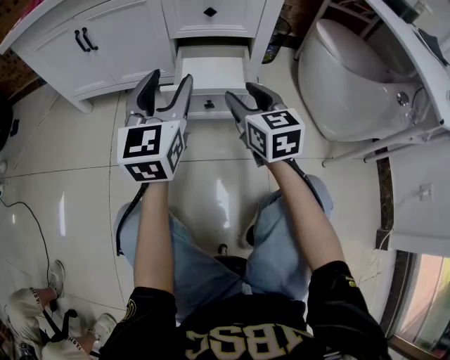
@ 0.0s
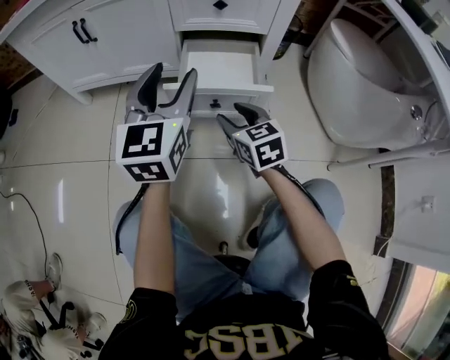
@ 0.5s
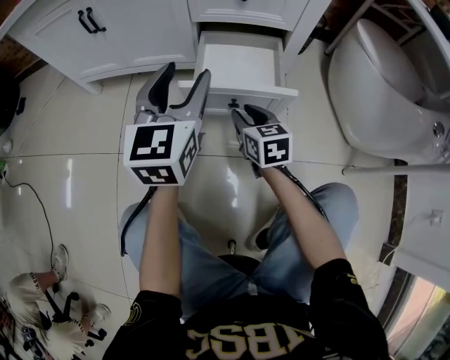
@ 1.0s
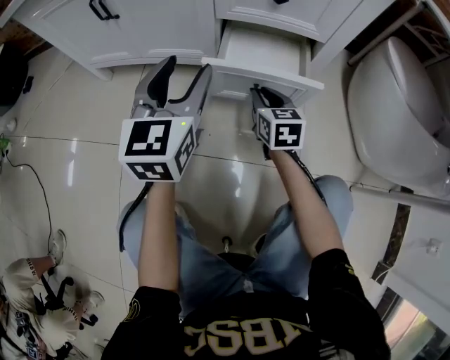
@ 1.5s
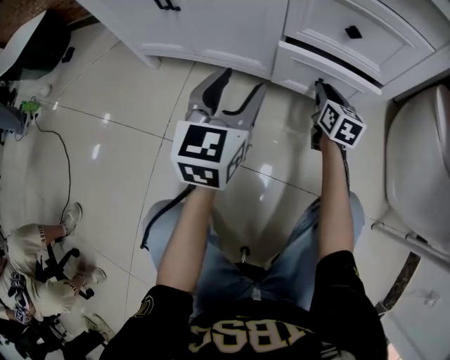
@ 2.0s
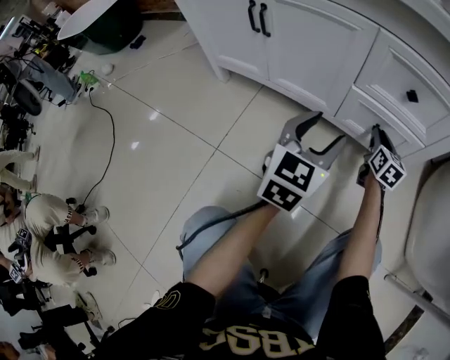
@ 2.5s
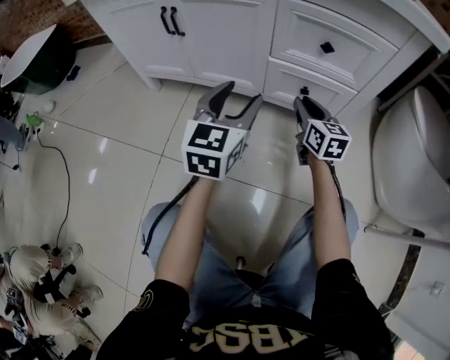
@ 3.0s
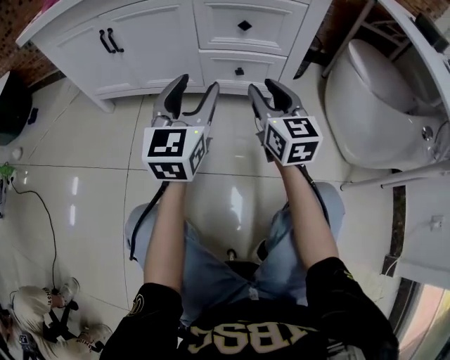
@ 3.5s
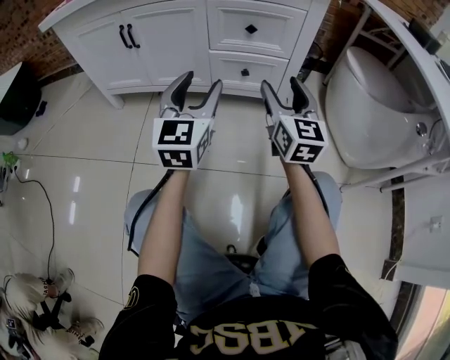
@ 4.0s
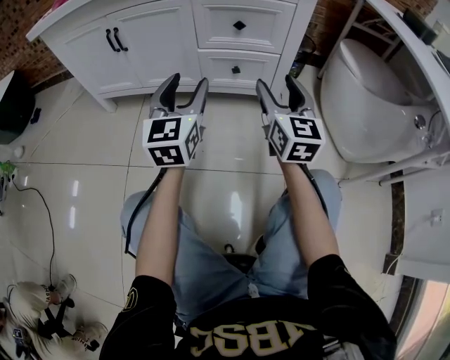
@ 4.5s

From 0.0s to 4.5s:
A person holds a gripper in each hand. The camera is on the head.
From 0.0s to 2.0s: The left gripper goes approximately 20 cm forward, downward and to the left. Meanwhile the right gripper travels forward and downward by approximately 30 cm, and closes up.
From 2.0s to 4.5s: The right gripper is displaced backward and upward by roughly 30 cm, changes its angle by approximately 30 degrees, and opens its fingers. The left gripper is displaced backward, upward and to the right by some 10 cm.

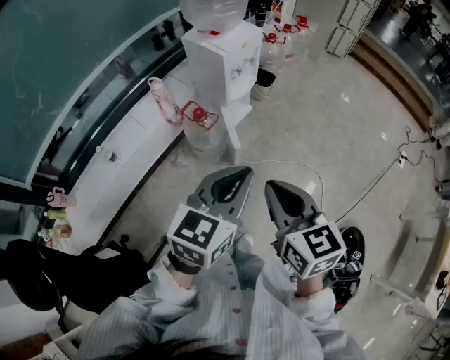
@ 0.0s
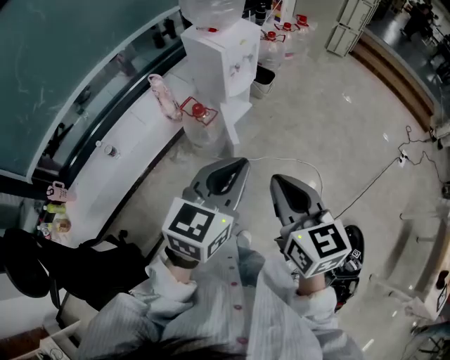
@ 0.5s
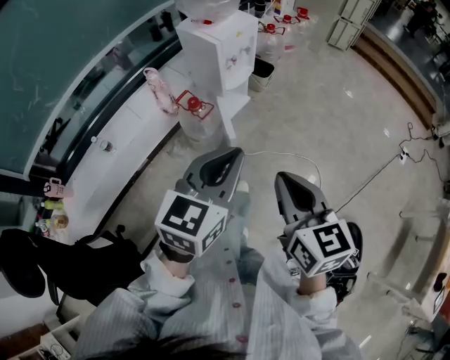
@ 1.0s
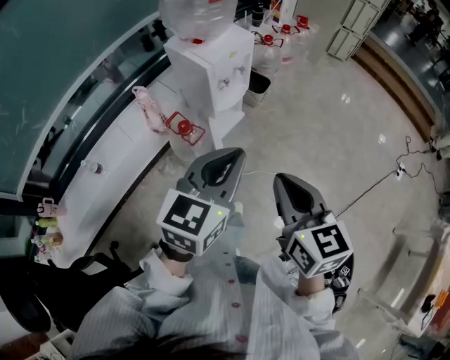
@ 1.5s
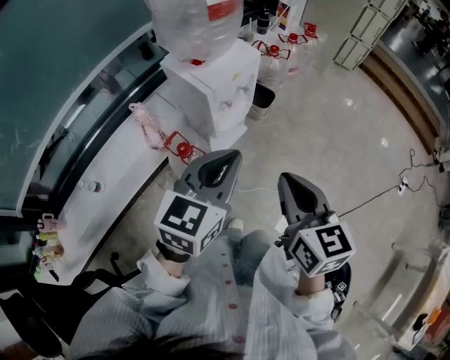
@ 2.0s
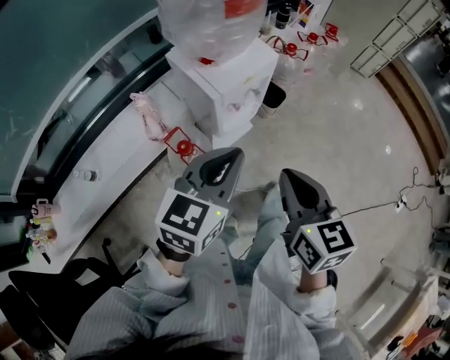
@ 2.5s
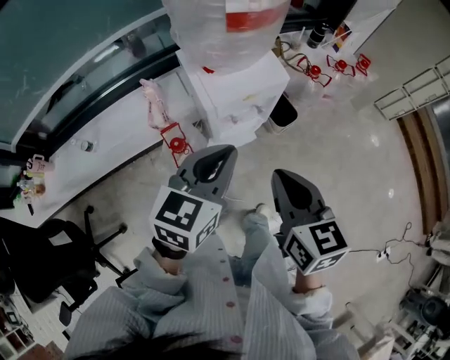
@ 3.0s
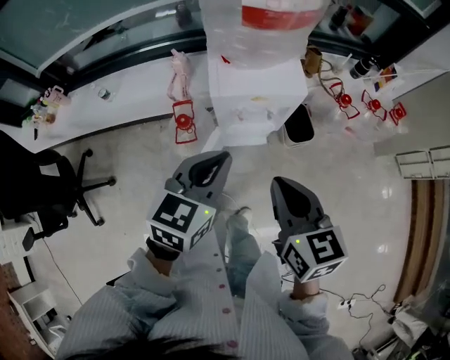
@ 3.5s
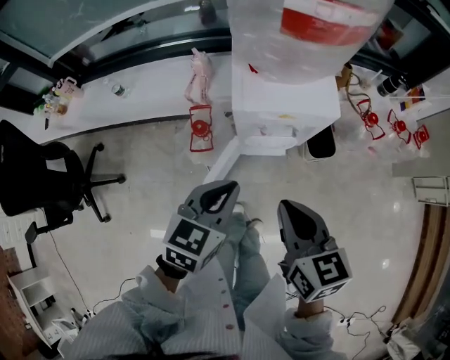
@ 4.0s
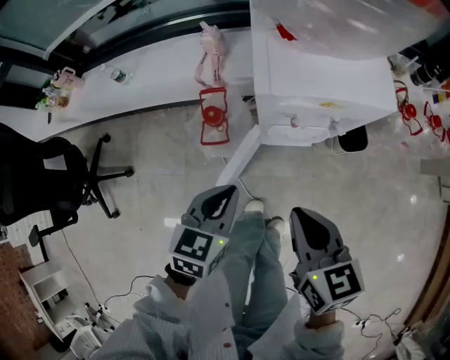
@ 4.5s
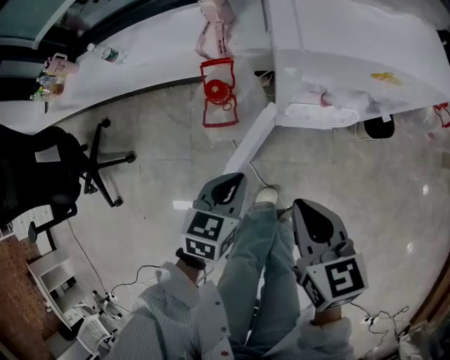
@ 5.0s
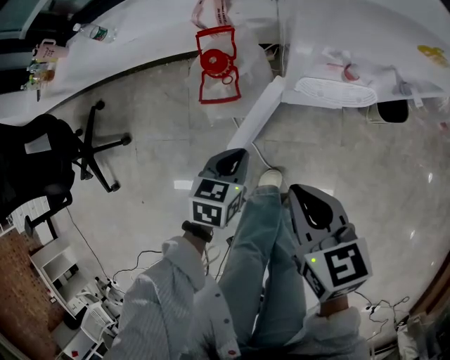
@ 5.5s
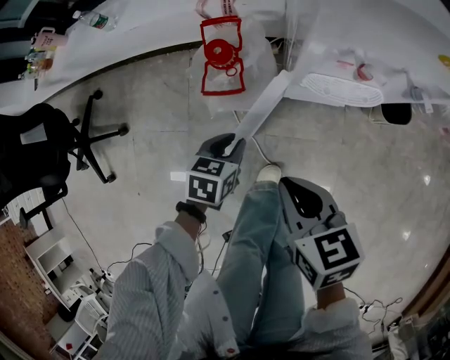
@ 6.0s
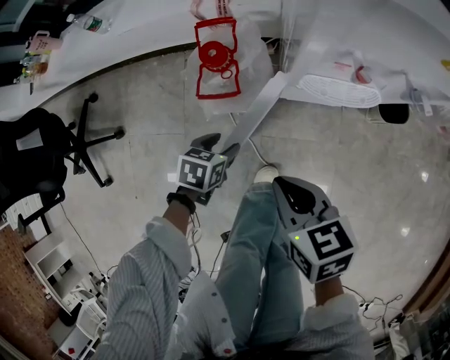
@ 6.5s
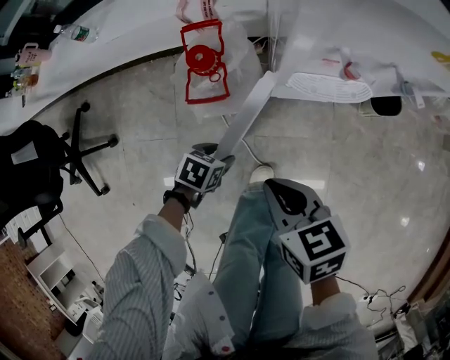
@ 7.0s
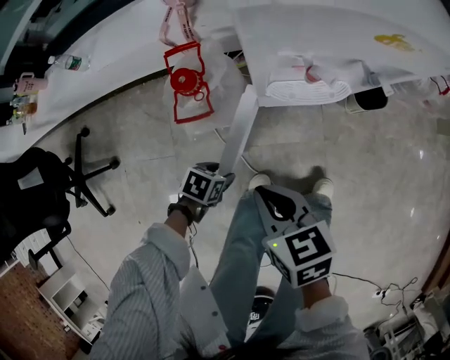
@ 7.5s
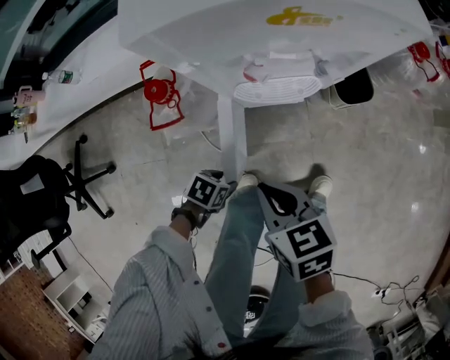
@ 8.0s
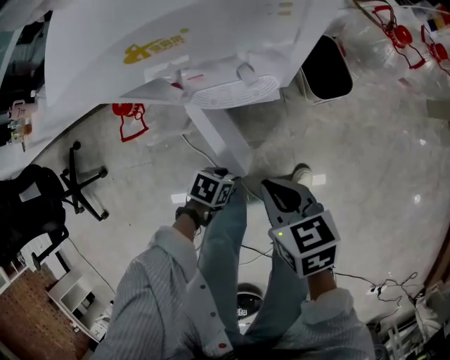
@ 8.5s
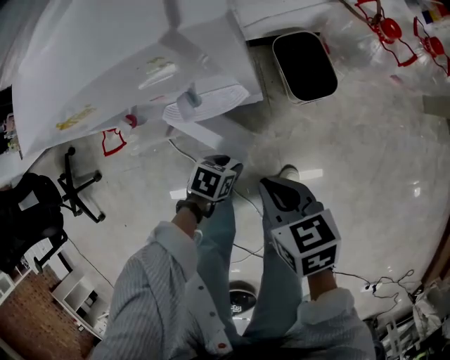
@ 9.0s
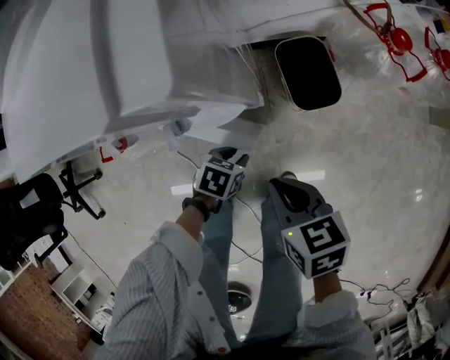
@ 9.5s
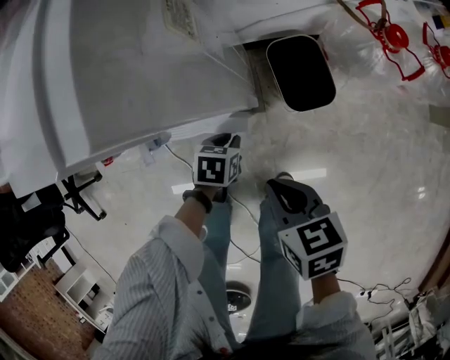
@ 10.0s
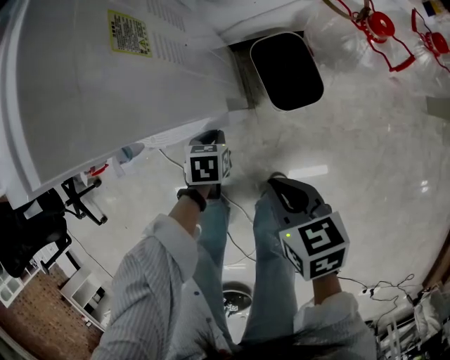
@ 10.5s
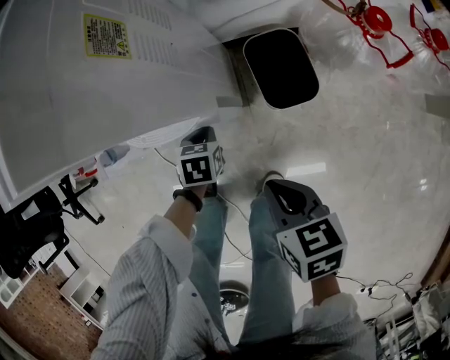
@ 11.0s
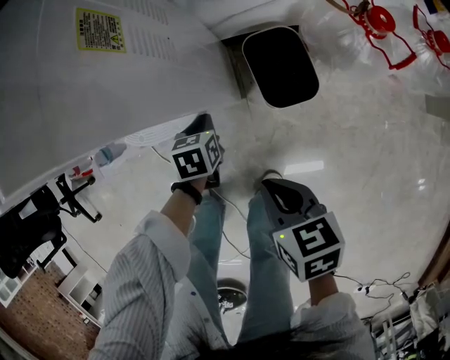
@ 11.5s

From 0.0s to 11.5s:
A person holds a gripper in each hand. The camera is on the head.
From 0.0s to 2.0s: Both grippers move forward, about 30 cm.
From 2.0s to 4.0s: The right gripper changes place by about 25 cm, and swivels roughly 50 degrees. The left gripper ends up some 20 cm from where it was, and turns by about 50 degrees.
From 4.0s to 6.0s: Both grippers travel together downward, approximately 40 cm. The right gripper changes its angle by some 20 degrees; the left gripper swivels about 30 degrees.
From 6.0s to 7.5s: The left gripper shifts about 5 cm downward, changes its angle by roughly 30 degrees, and opens its fingers.
From 7.5s to 9.5s: The left gripper ends up approximately 35 cm from where it was, and closes; the right gripper shifts by roughly 35 cm.
From 9.5s to 11.5s: The left gripper ends up roughly 10 cm from where it was, rotates about 30 degrees, and closes. The right gripper ends up some 10 cm from where it was.

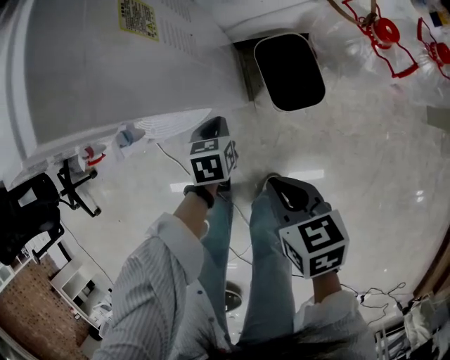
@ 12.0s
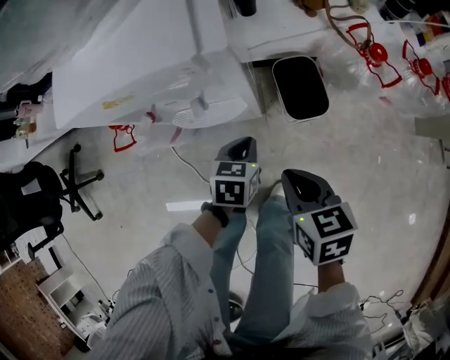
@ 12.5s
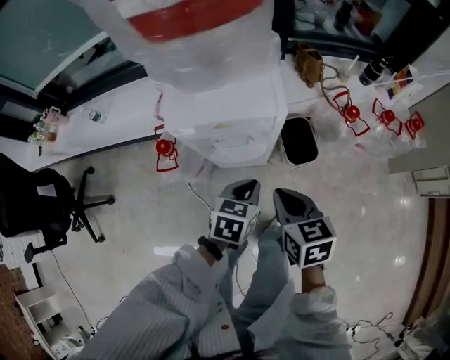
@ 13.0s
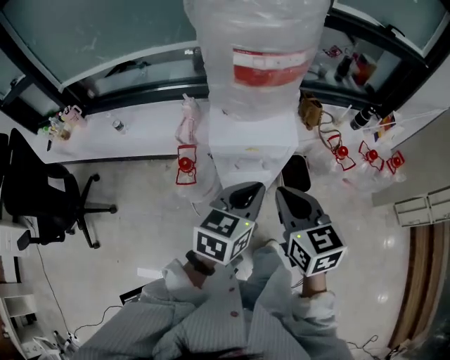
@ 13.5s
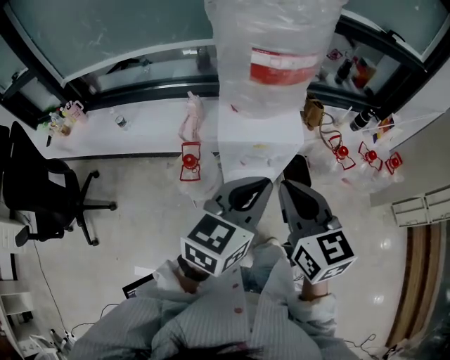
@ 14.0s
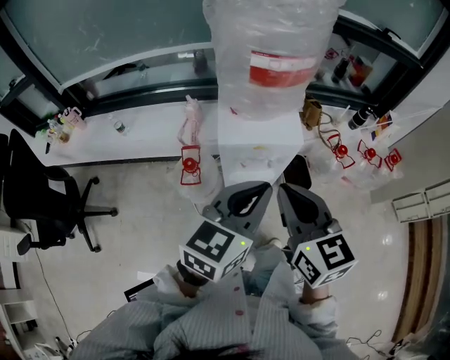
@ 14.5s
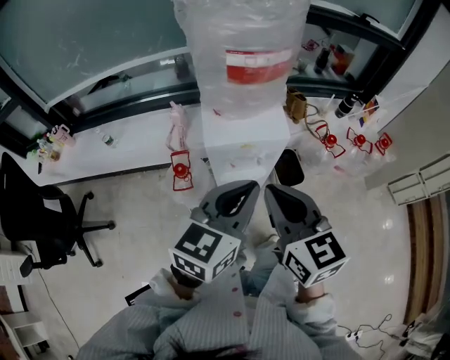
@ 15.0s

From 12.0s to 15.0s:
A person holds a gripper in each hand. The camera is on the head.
From 12.0s to 13.5s: The right gripper heads upward and to the left, covering about 50 cm, and turns by approximately 40 degrees. The left gripper heads upward, covering about 60 cm, and tips its fingers upward by about 40 degrees.
From 13.5s to 15.0s: The two grippers go approximately 5 cm upward.

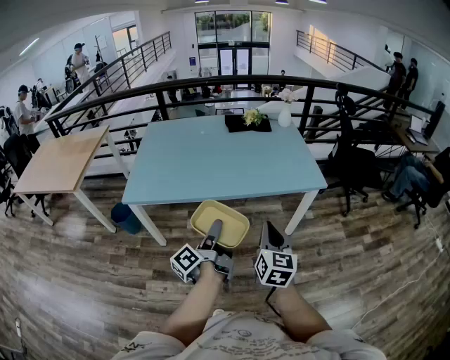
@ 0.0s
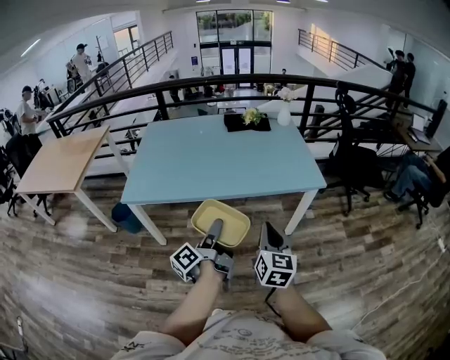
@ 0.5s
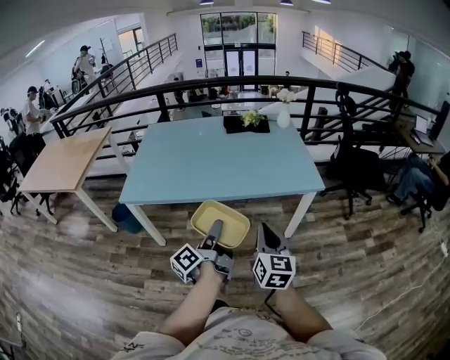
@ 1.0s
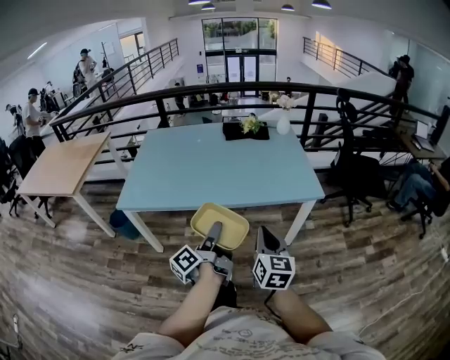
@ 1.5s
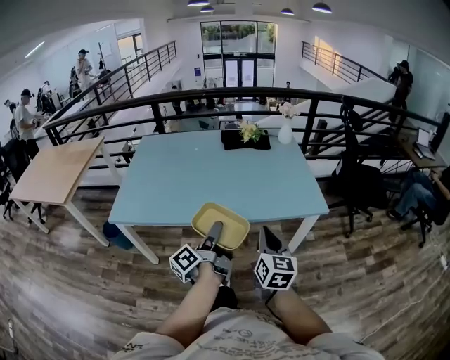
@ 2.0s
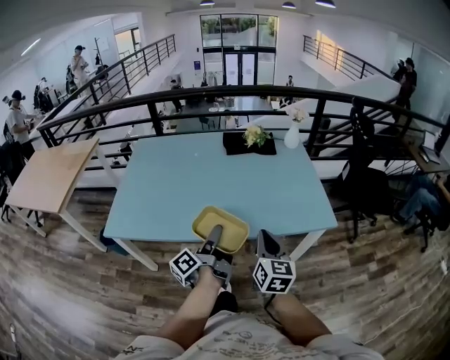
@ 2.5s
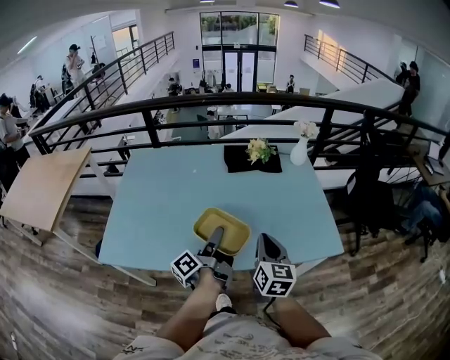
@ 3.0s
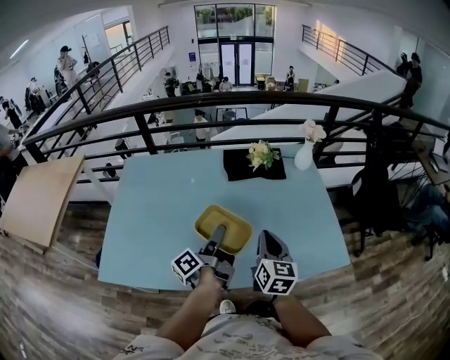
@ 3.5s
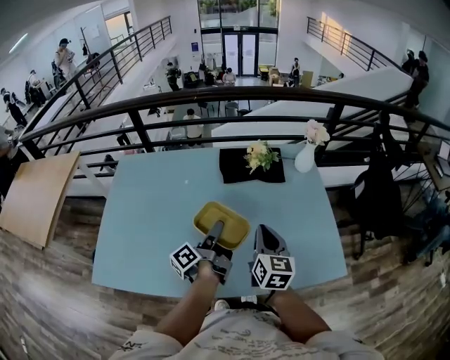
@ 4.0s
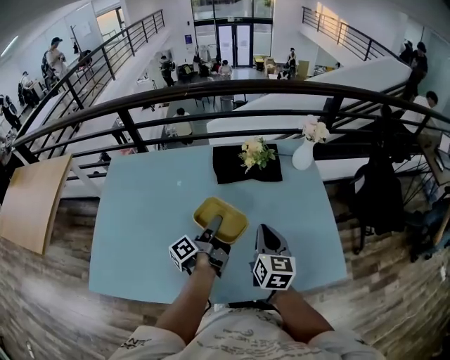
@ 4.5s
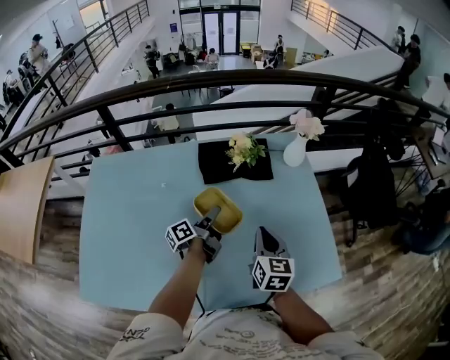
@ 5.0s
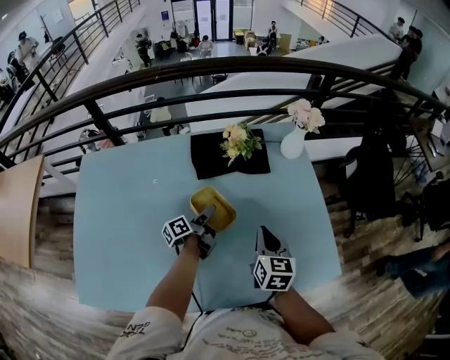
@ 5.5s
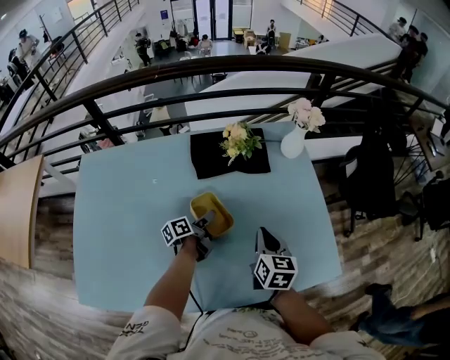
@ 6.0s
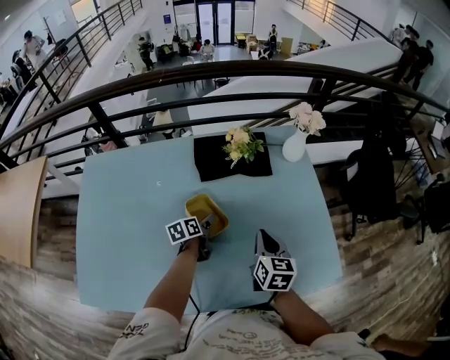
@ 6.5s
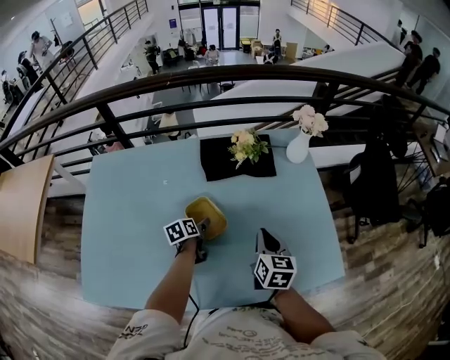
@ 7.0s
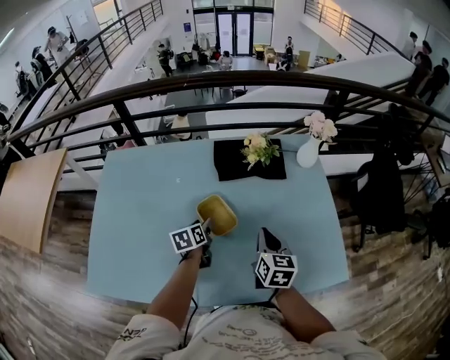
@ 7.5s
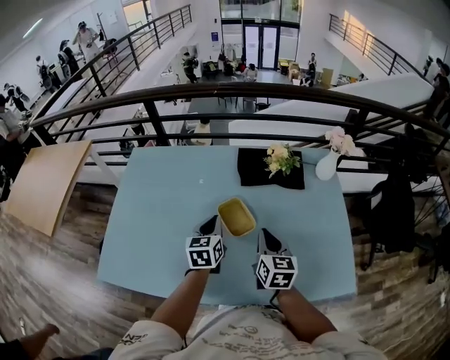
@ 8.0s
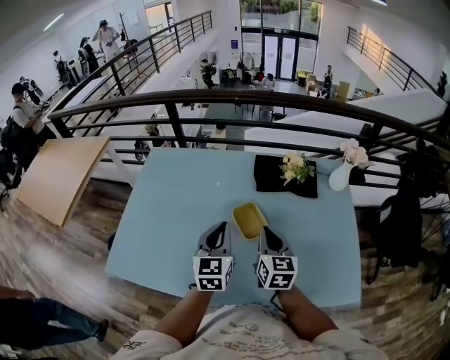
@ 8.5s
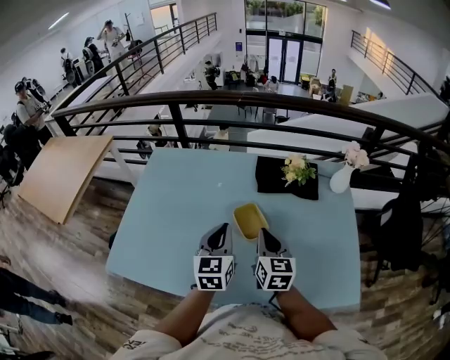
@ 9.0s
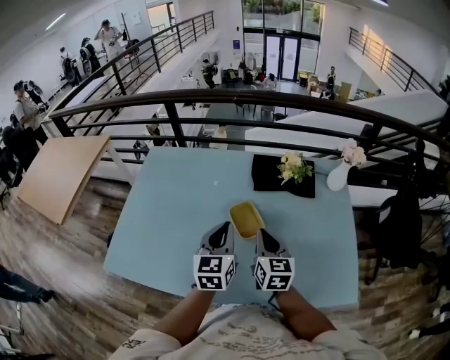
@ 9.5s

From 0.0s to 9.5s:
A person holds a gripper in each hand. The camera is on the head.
From 0.0s to 2.0s: The two grippers go some 15 cm forward.
From 2.0s to 4.0s: The two grippers travel together, forward, roughly 40 cm.
From 4.0s to 5.5s: The left gripper is displaced forward and downward by roughly 25 cm, and turns by some 20 degrees, while the right gripper travels forward, downward and to the right by roughly 15 cm.
From 5.5s to 7.5s: The right gripper shifts by approximately 5 cm. Meanwhile the left gripper is displaced backward and to the left by some 10 cm, and rotates some 50 degrees.
From 7.5s to 9.5s: The right gripper is displaced to the left by about 10 cm. The left gripper goes roughly 25 cm upward and backward, turns by approximately 40 degrees, and closes.
